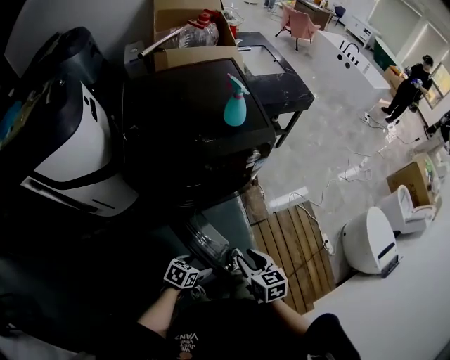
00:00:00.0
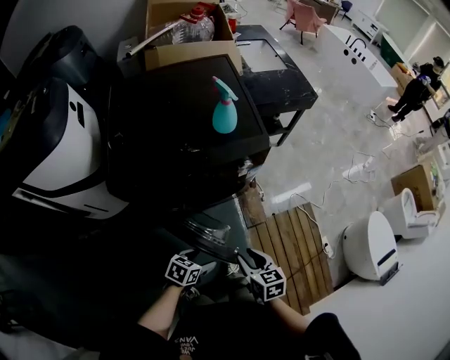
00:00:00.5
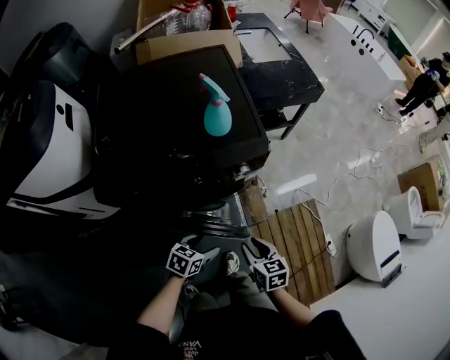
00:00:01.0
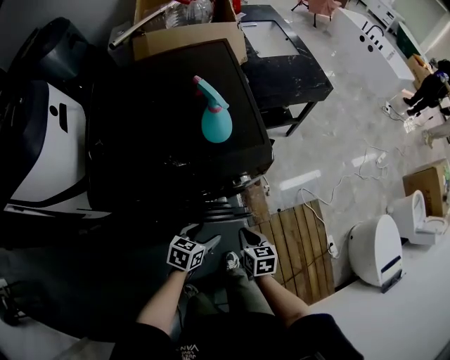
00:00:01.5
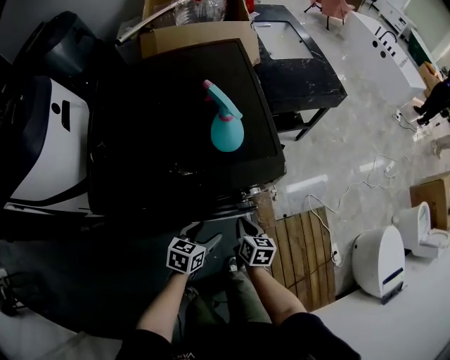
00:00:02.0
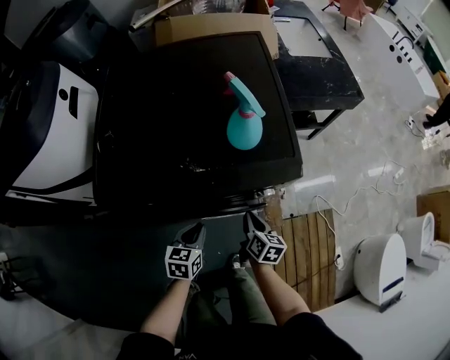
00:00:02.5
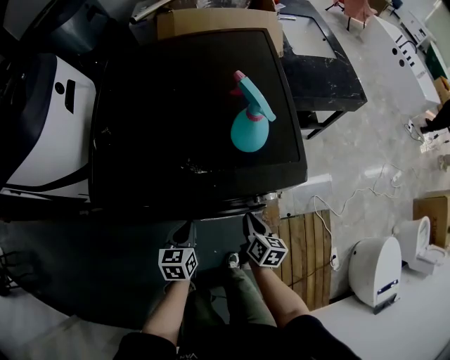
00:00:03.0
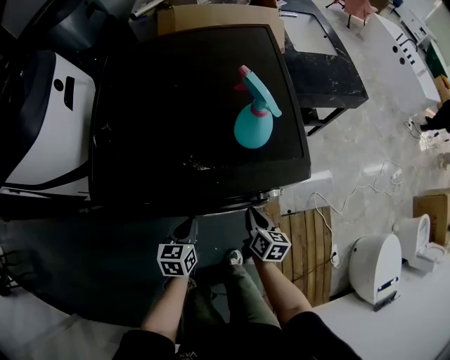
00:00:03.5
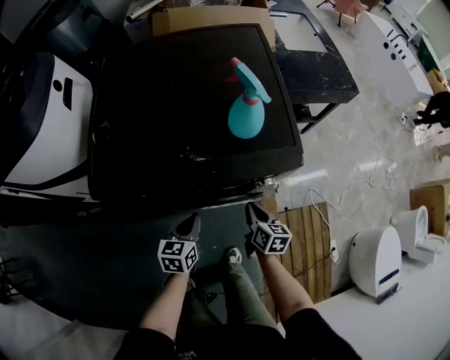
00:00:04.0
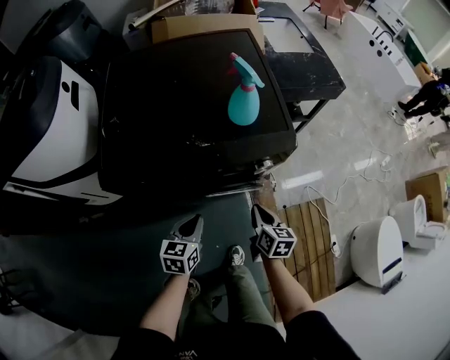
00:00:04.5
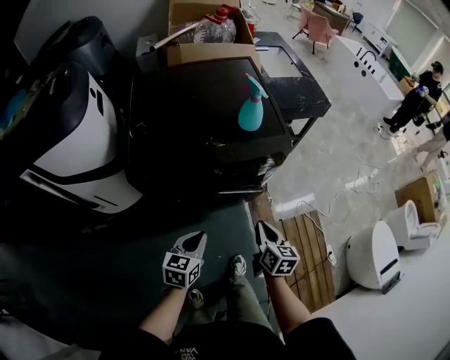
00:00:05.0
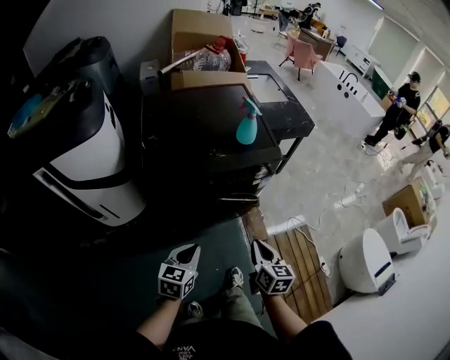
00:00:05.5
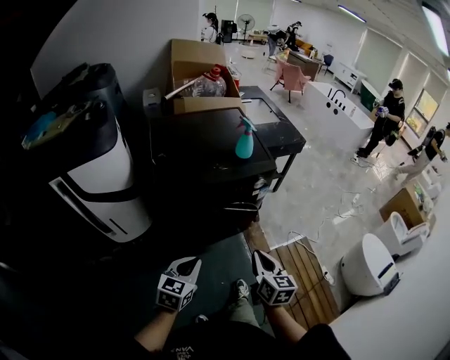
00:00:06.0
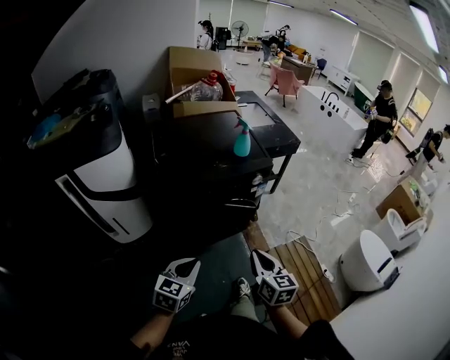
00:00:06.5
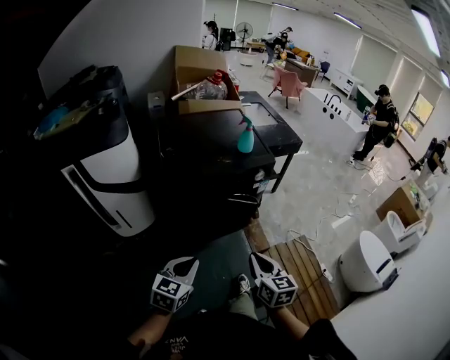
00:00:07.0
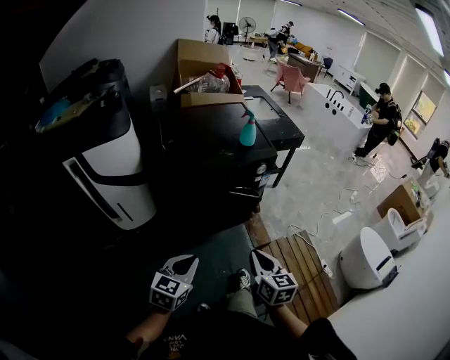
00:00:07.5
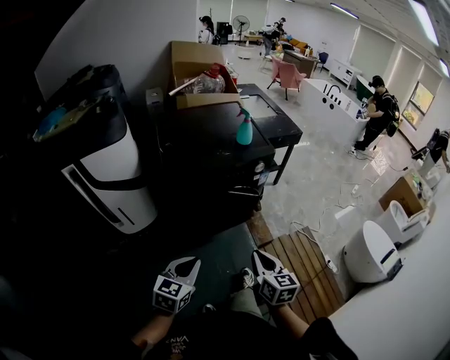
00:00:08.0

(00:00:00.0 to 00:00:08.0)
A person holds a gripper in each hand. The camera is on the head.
00:00:00.0 - 00:00:02.0: The right gripper travels forward and downward by roughly 35 cm, and closes; the left gripper moves forward, about 30 cm, and changes its angle by about 20 degrees.
00:00:02.0 - 00:00:04.0: The left gripper travels to the left by about 10 cm, changes its angle by approximately 20 degrees, and closes.
00:00:04.0 - 00:00:06.0: The two grippers go approximately 40 cm backward and upward. The right gripper rotates approximately 30 degrees. Meanwhile the left gripper rotates approximately 30 degrees.
00:00:06.0 - 00:00:08.0: Both grippers move backward, some 10 cm.

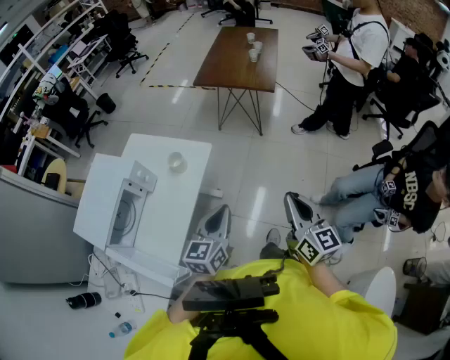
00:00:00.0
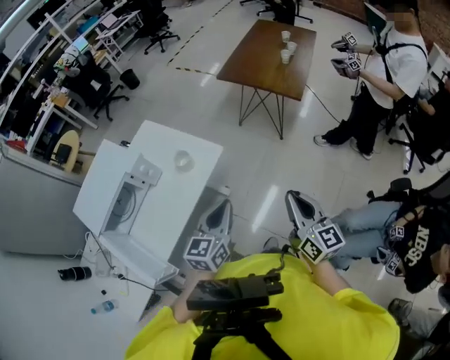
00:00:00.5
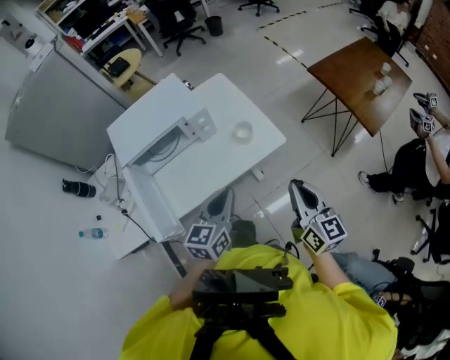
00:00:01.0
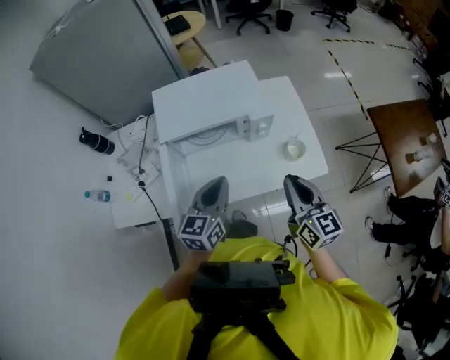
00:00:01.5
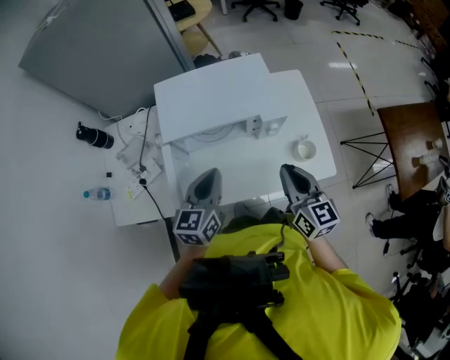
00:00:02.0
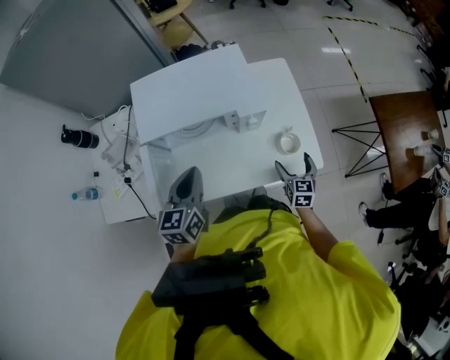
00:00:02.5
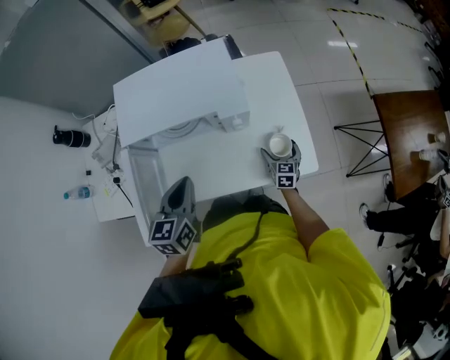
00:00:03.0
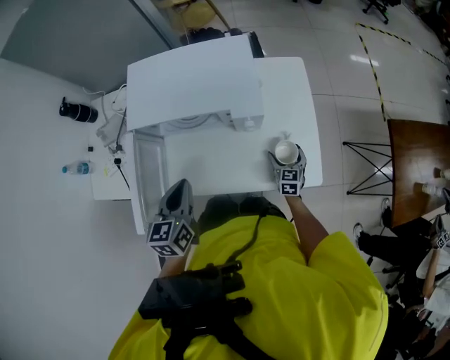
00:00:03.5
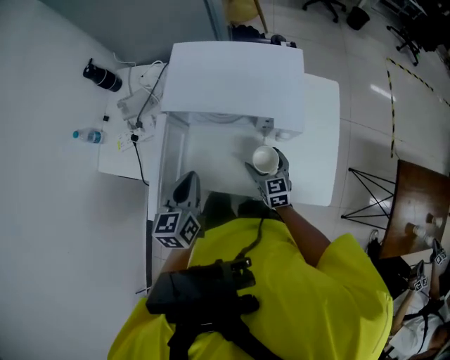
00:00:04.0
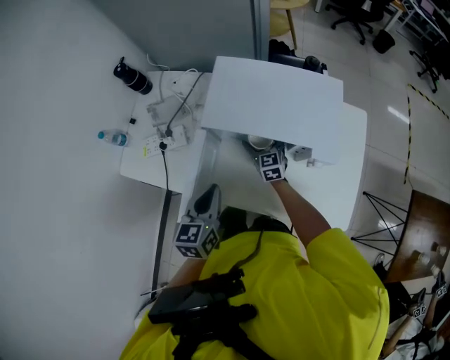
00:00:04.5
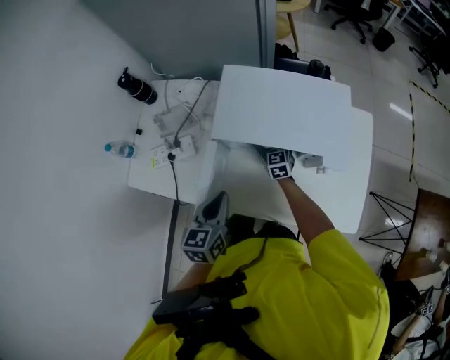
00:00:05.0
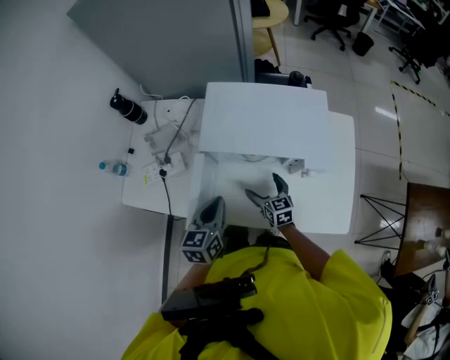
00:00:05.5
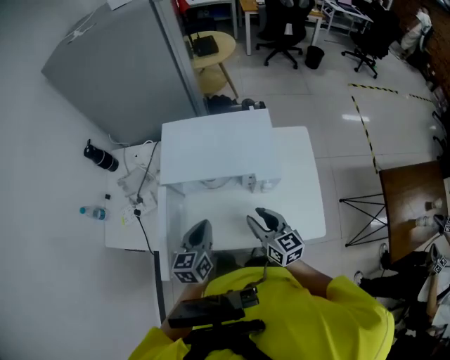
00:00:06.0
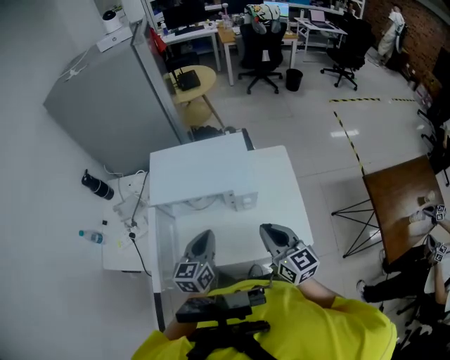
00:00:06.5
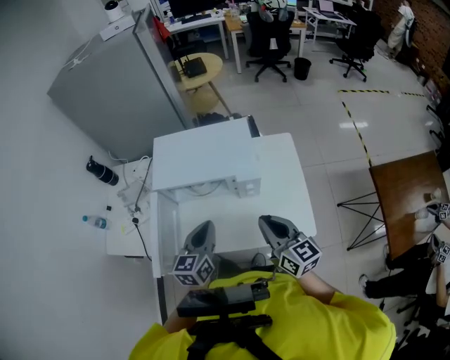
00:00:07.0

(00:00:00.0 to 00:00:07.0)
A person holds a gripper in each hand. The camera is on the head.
00:00:00.0 - 00:00:02.0: The left gripper changes place by about 35 cm, and changes its angle by some 60 degrees. Meanwhile the right gripper ends up about 50 cm from where it was, and changes its angle by roughly 60 degrees.
00:00:02.0 - 00:00:03.5: The right gripper is displaced downward and to the right by some 35 cm, changes its angle by roughly 30 degrees, and opens up; the left gripper heads downward, covering some 5 cm, and changes its angle by approximately 20 degrees.
00:00:03.5 - 00:00:05.0: The left gripper travels to the left and forward by approximately 15 cm; the right gripper goes about 40 cm to the left and forward, and rotates about 30 degrees.
00:00:05.0 - 00:00:07.0: The right gripper shifts roughly 50 cm backward, upward and to the right, swivels approximately 30 degrees, and closes up; the left gripper is displaced to the right by about 15 cm, and turns by roughly 20 degrees.

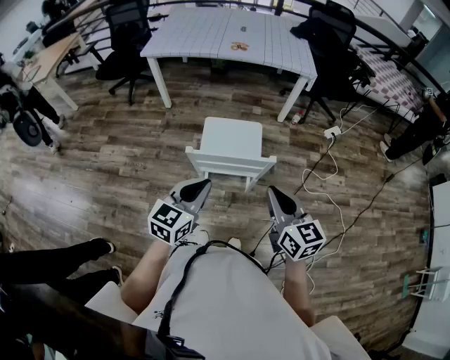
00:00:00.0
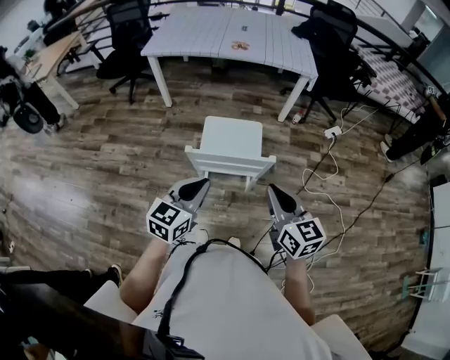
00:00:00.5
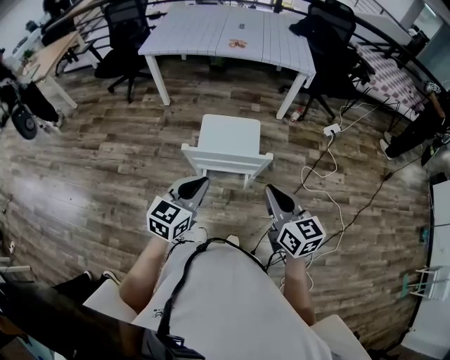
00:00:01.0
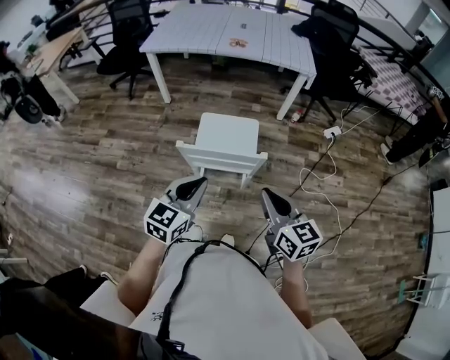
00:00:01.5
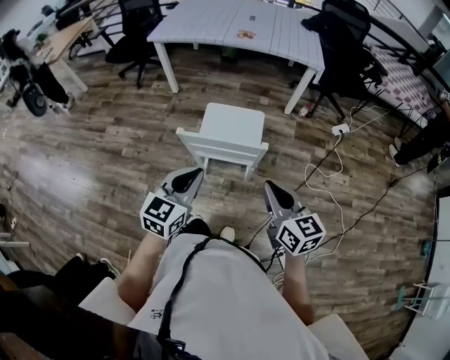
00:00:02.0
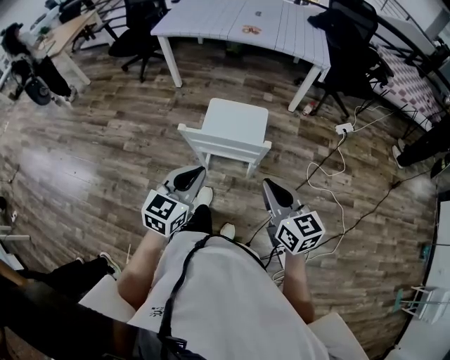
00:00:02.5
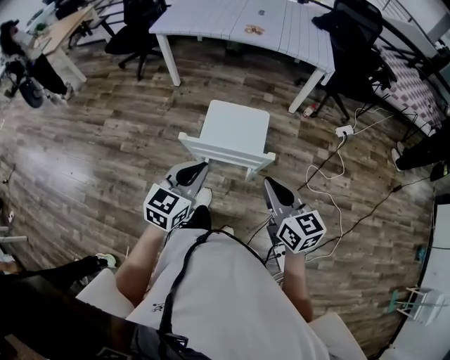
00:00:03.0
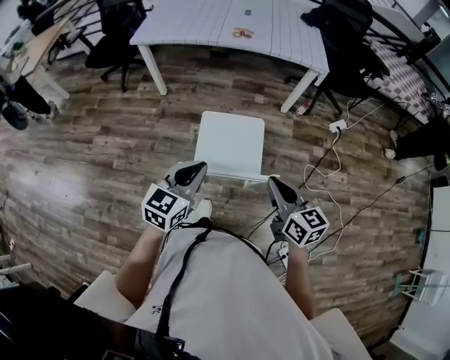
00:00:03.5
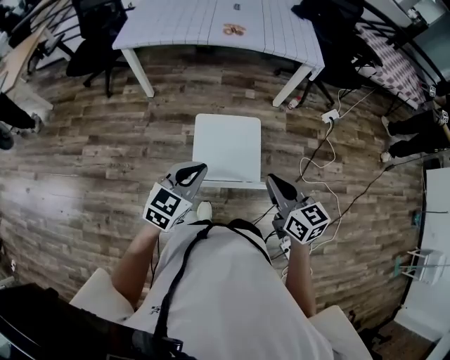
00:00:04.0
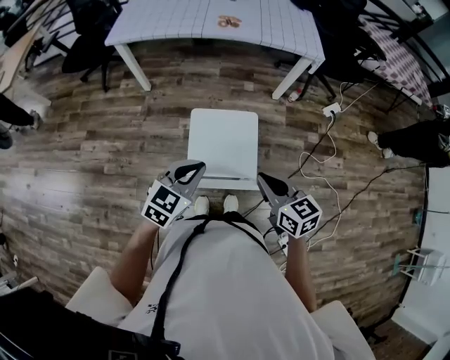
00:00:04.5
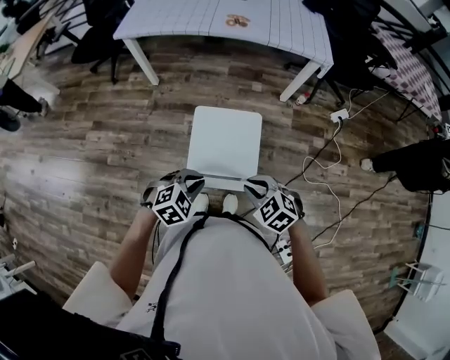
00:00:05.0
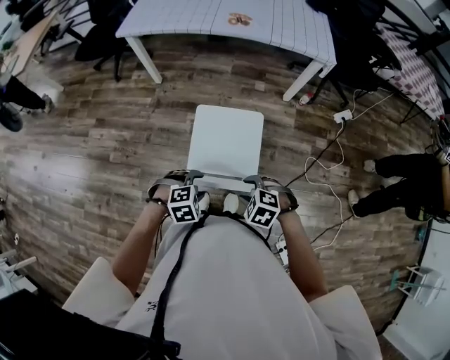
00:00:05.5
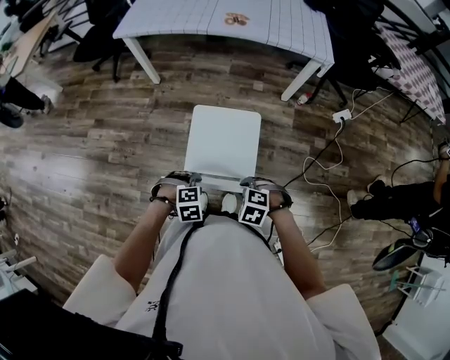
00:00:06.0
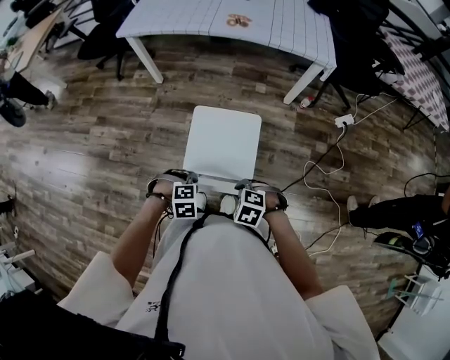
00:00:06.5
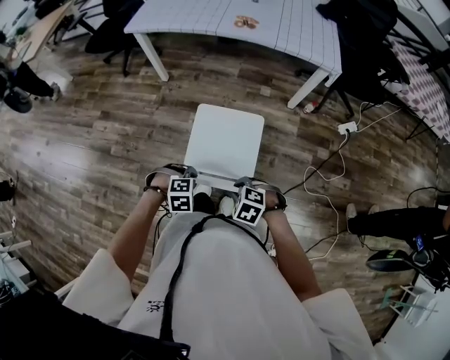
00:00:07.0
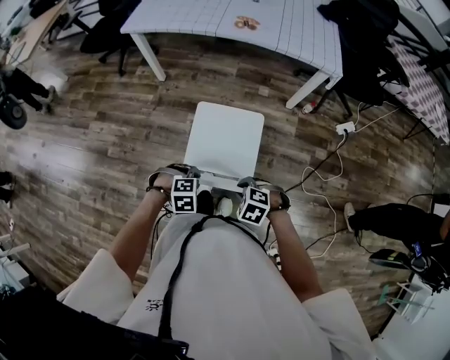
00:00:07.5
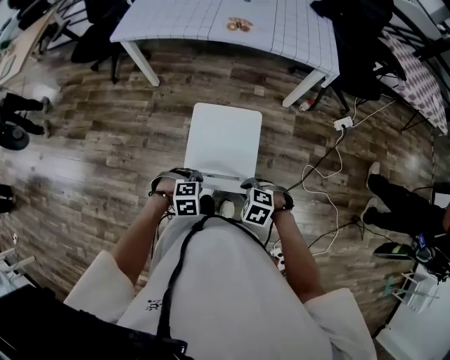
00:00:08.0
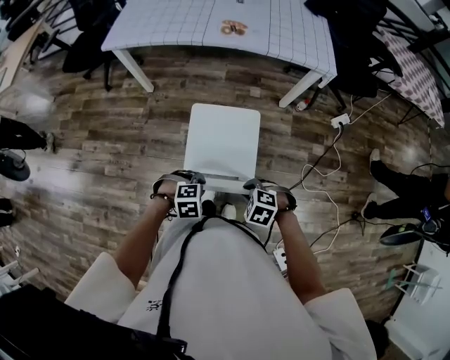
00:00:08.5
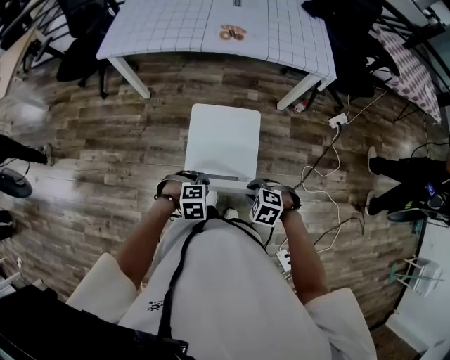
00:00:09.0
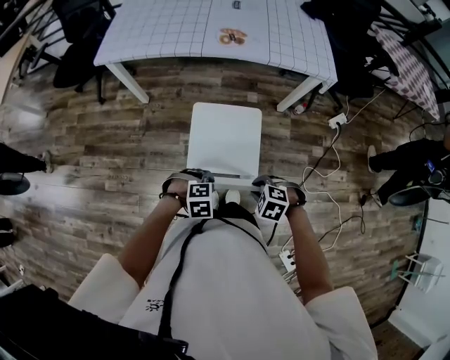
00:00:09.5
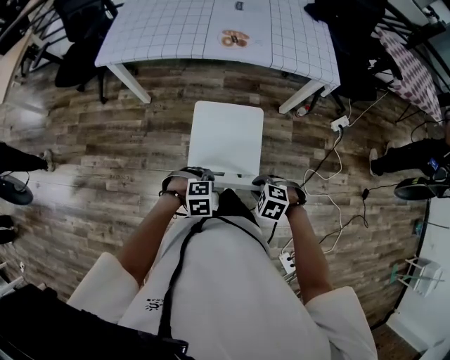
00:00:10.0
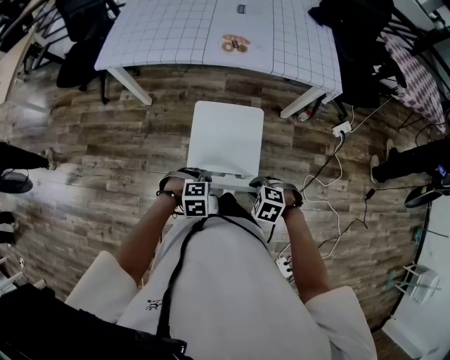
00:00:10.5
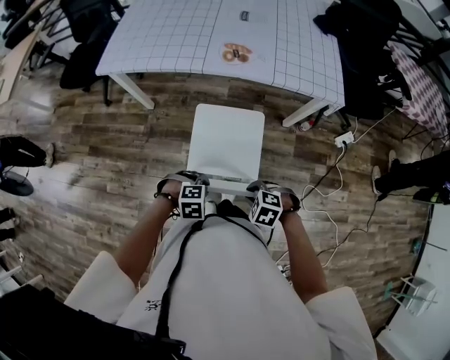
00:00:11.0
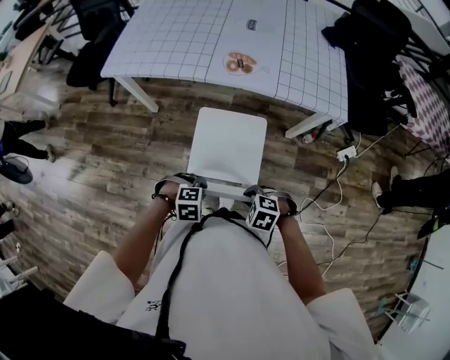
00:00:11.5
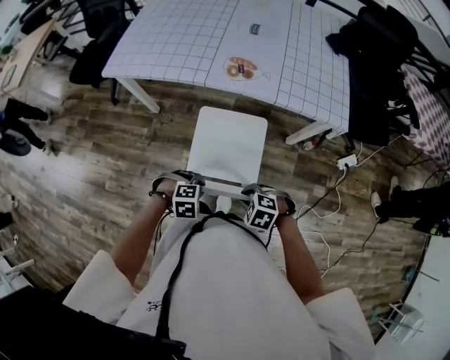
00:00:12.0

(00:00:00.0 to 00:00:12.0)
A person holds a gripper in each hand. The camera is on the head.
00:00:00.0 - 00:00:02.0: The right gripper heads to the right, covering approximately 5 cm, while the left gripper moves roughly 5 cm.
00:00:02.0 - 00:00:04.0: The left gripper moves forward, some 25 cm, while the right gripper goes about 25 cm forward and to the left.
00:00:04.0 - 00:00:06.0: Both grippers travel together downward, about 20 cm. The right gripper angles its fingers downward, by approximately 50 degrees, and opens its fingers, while the left gripper points its fingers about 50 degrees further downward, and opens its fingers.
00:00:06.0 - 00:00:08.0: The right gripper changes place by some 10 cm; the left gripper moves about 10 cm.
00:00:08.0 - 00:00:10.0: The left gripper moves about 15 cm; the right gripper shifts by some 15 cm.
00:00:10.0 - 00:00:12.0: The right gripper ends up roughly 15 cm from where it was. The left gripper changes place by some 15 cm.
